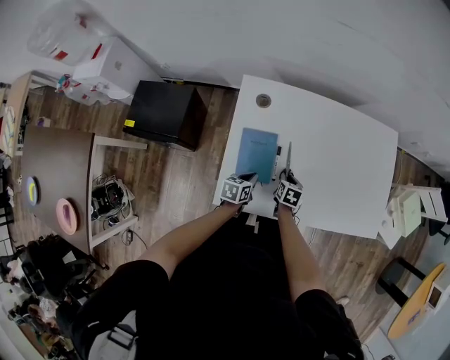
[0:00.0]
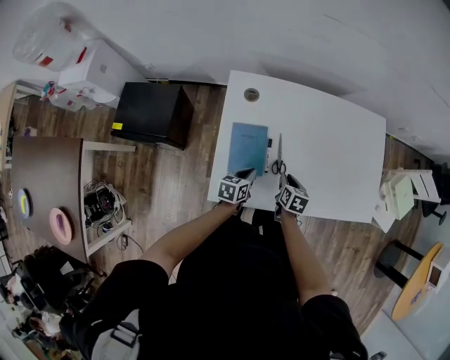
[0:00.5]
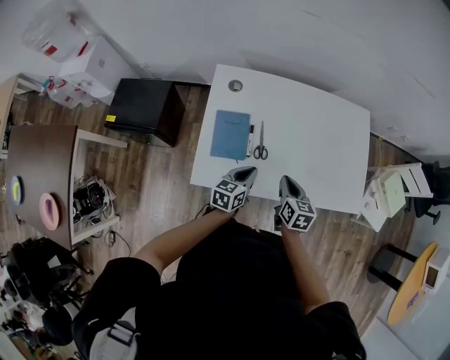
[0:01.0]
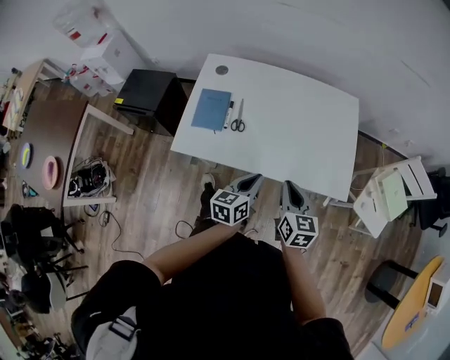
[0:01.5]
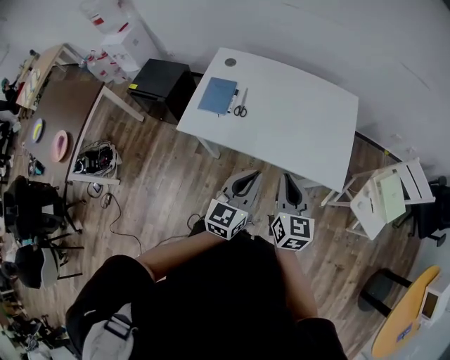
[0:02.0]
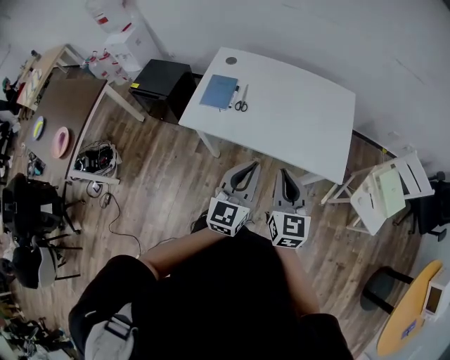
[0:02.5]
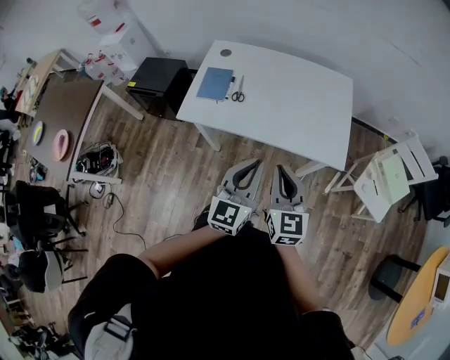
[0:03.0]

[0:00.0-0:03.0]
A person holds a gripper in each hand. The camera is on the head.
0:00.0 to 0:01.5: The left gripper moves to the right, upward and backward, some 40 cm, and turns by roughly 30 degrees, while the right gripper heads upward, to the right and backward, covering approximately 40 cm, and tips its fingers upward by approximately 30 degrees.
0:01.5 to 0:03.0: The grippers both shift backward and upward by some 20 cm. The right gripper turns by approximately 20 degrees. The left gripper turns by about 40 degrees.

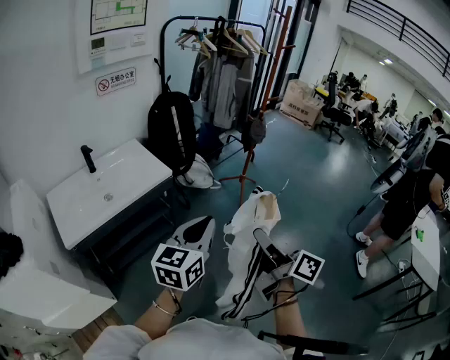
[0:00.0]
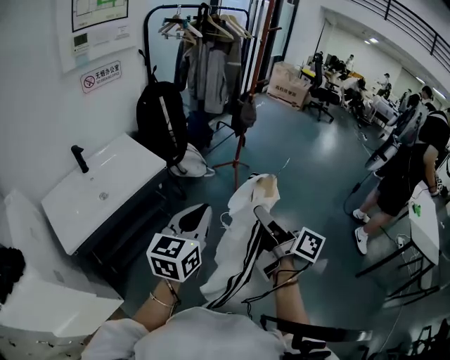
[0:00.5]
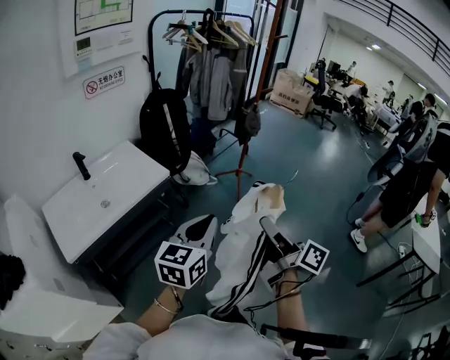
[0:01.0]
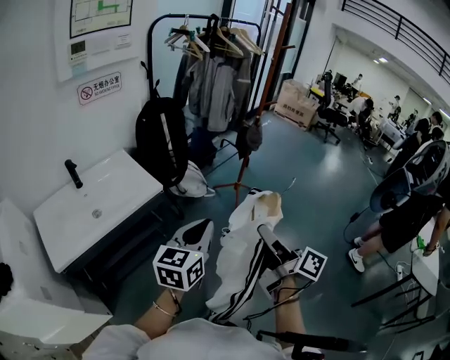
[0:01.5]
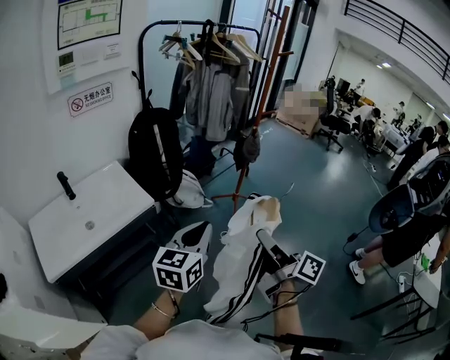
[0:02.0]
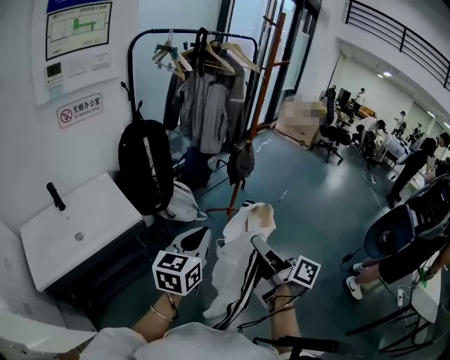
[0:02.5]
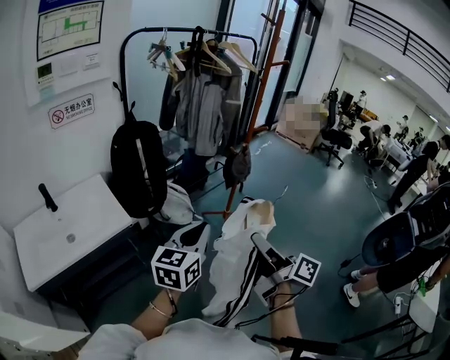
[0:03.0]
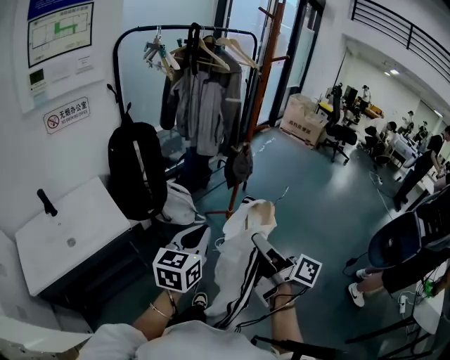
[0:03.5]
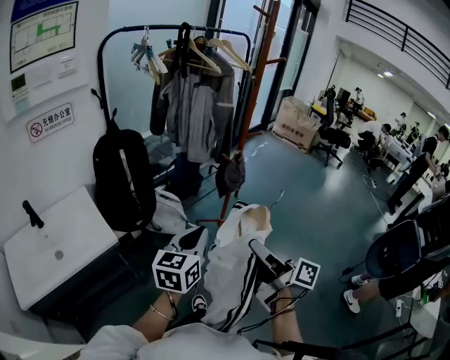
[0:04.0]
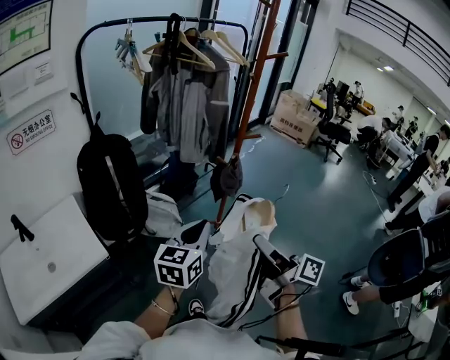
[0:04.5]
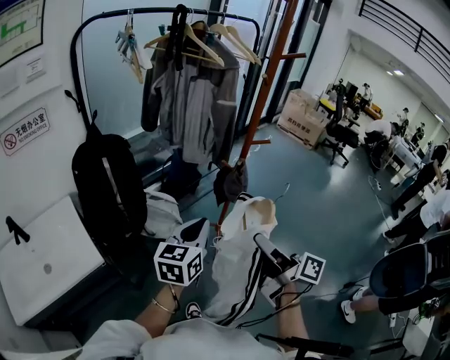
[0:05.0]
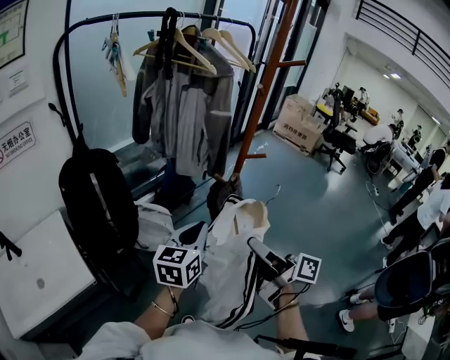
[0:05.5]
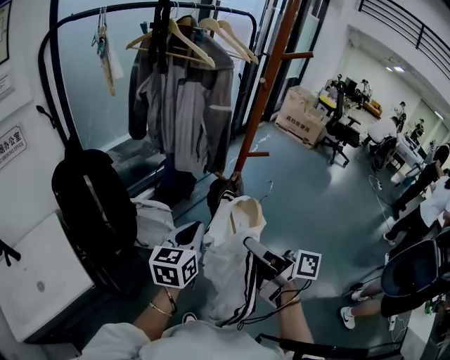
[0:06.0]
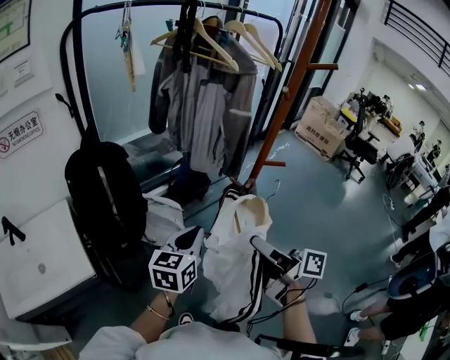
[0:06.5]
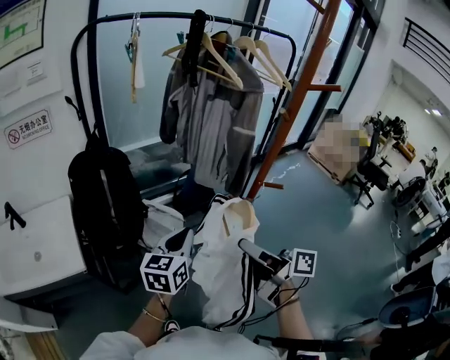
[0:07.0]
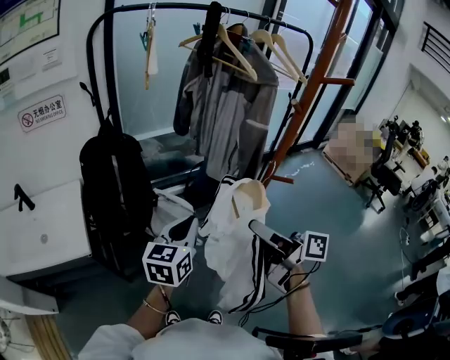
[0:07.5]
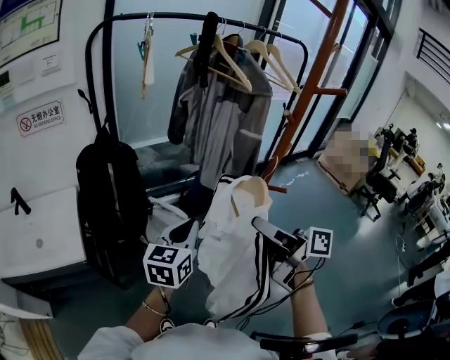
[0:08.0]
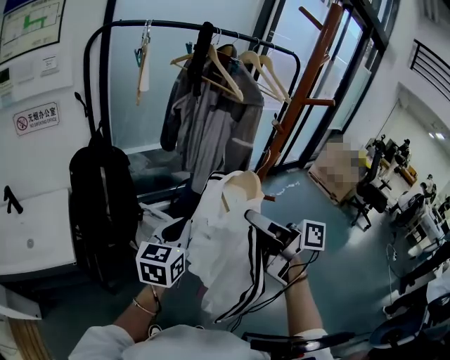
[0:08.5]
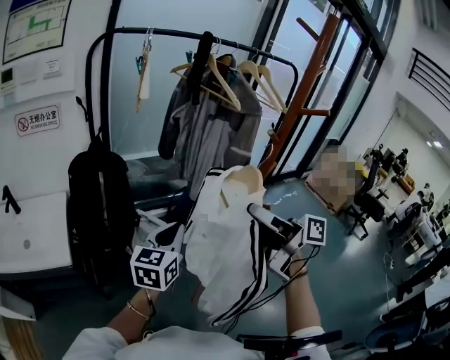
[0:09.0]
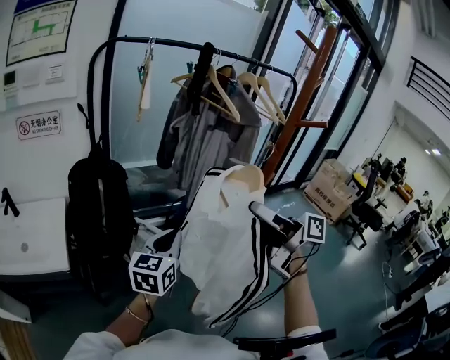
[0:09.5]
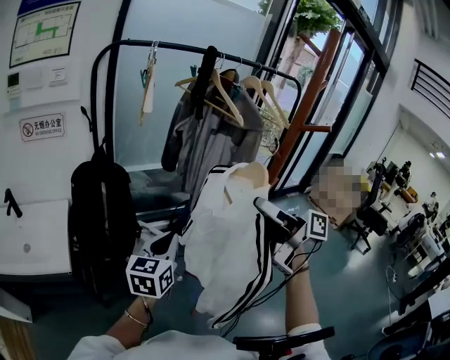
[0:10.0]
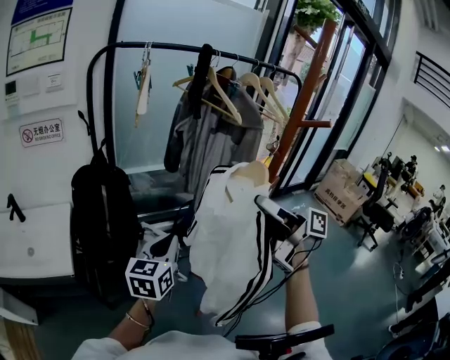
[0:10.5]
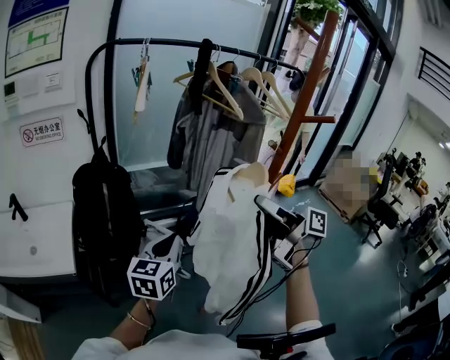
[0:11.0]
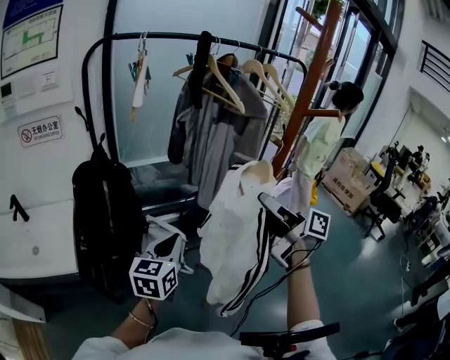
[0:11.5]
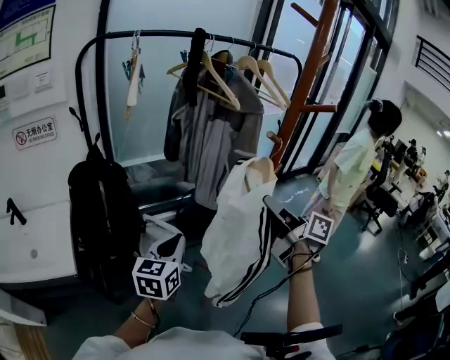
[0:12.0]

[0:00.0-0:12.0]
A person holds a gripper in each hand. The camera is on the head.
0:00.0 to 0:02.0: The grippers both shift forward by roughly 20 cm.
0:02.0 to 0:04.0: The grippers both shift forward and to the right by about 25 cm.
0:04.0 to 0:06.0: Both grippers travel together forward, approximately 25 cm.
0:06.0 to 0:08.0: The right gripper moves forward and upward, some 15 cm, and rotates roughly 30 degrees, while the left gripper shifts by some 5 cm, and changes its angle by some 20 degrees.
0:08.0 to 0:10.0: The right gripper is displaced upward and forward by approximately 10 cm.
0:10.0 to 0:12.0: The right gripper goes roughly 10 cm to the right and downward, and turns by roughly 20 degrees.

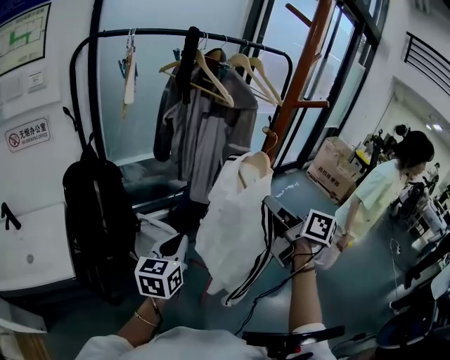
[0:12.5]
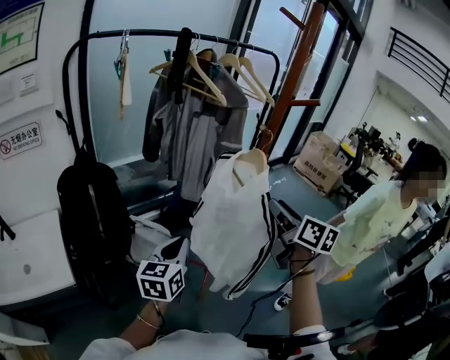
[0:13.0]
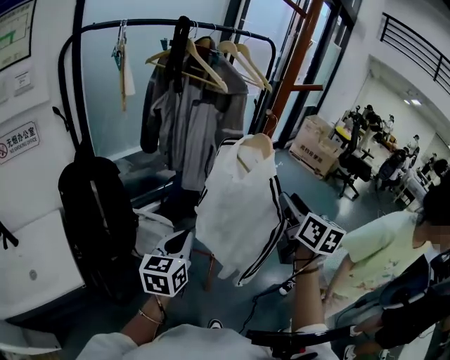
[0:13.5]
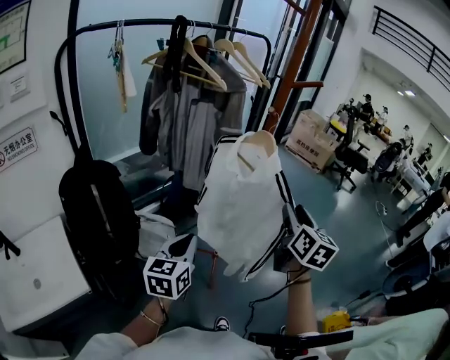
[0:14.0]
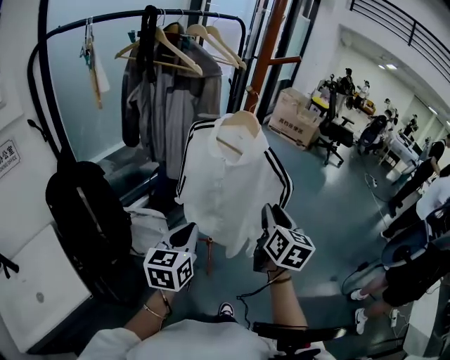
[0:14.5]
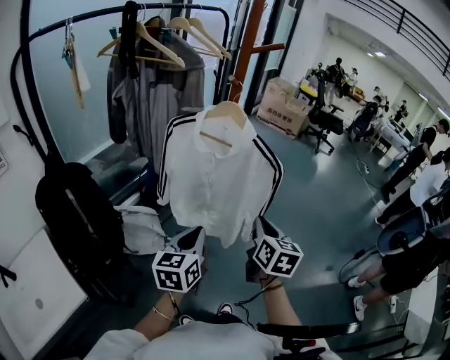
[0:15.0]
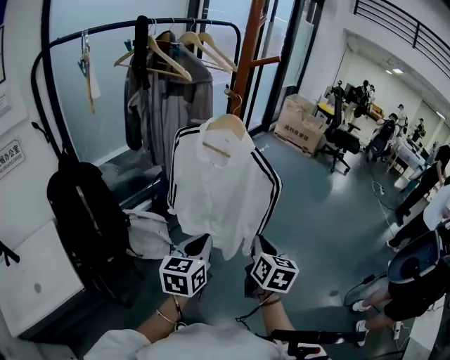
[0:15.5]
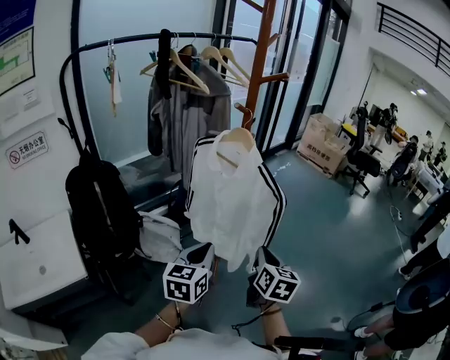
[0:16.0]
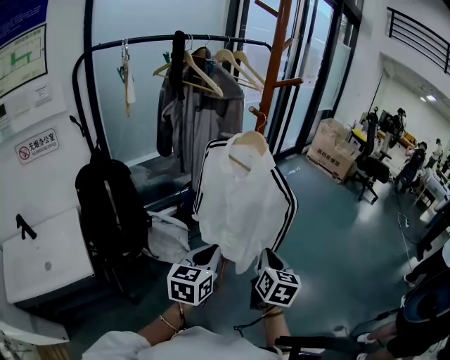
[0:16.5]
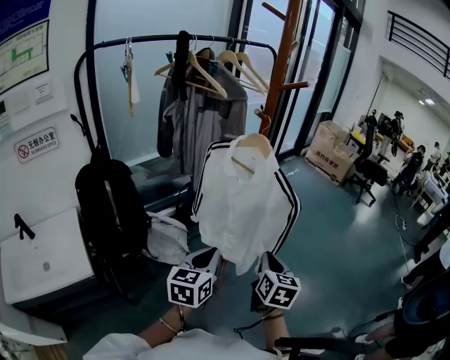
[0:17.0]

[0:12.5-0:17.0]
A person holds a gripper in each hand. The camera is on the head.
0:12.5 to 0:14.5: The right gripper moves about 15 cm, and changes its angle by about 50 degrees. The left gripper rotates some 20 degrees.
0:14.5 to 0:17.0: The left gripper is displaced to the right by approximately 10 cm. The right gripper travels downward by some 10 cm, and closes up.

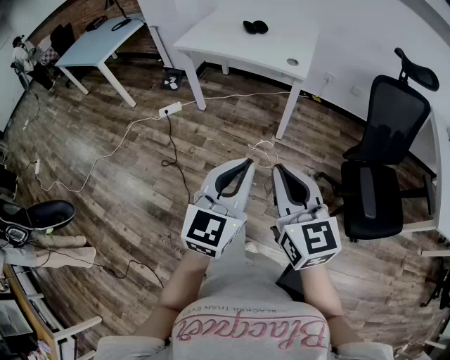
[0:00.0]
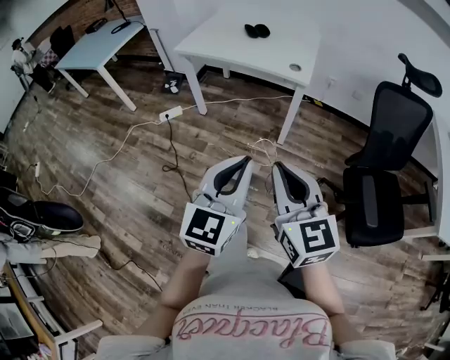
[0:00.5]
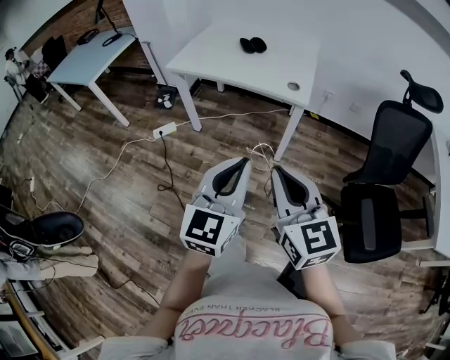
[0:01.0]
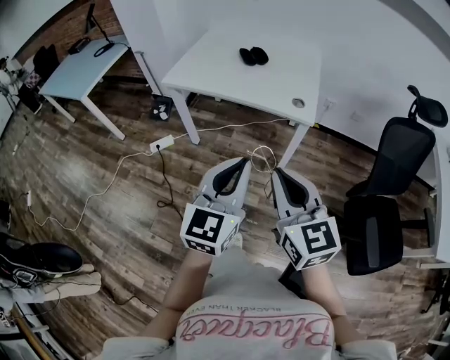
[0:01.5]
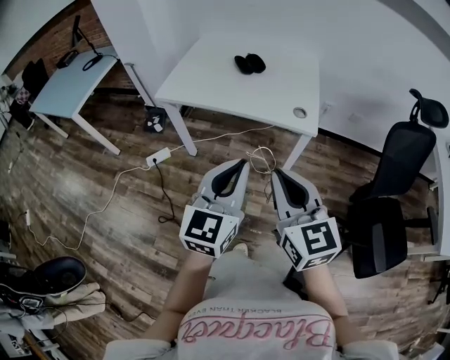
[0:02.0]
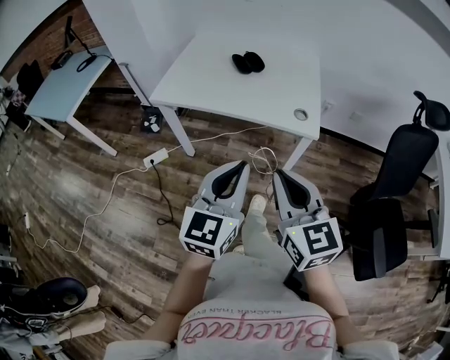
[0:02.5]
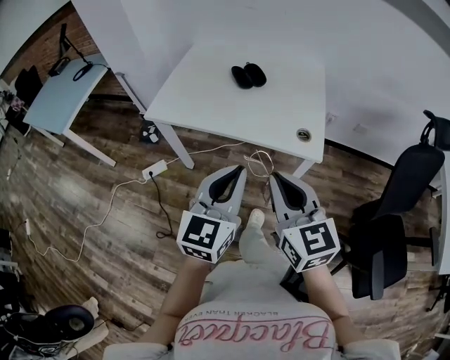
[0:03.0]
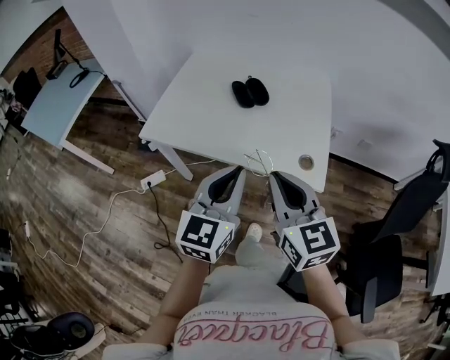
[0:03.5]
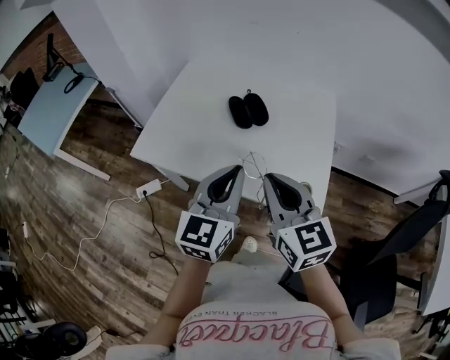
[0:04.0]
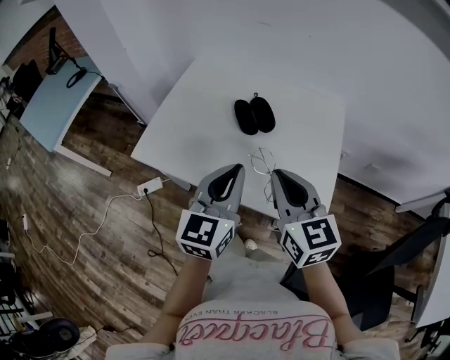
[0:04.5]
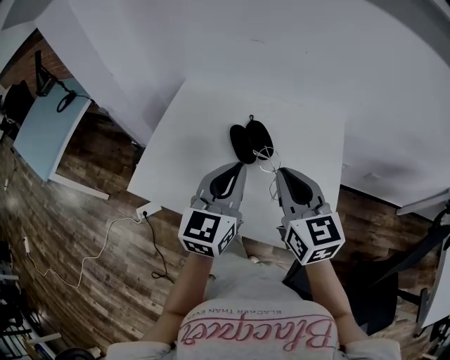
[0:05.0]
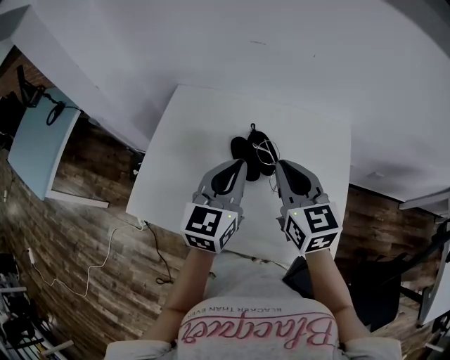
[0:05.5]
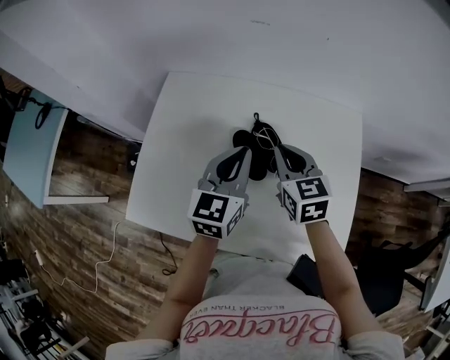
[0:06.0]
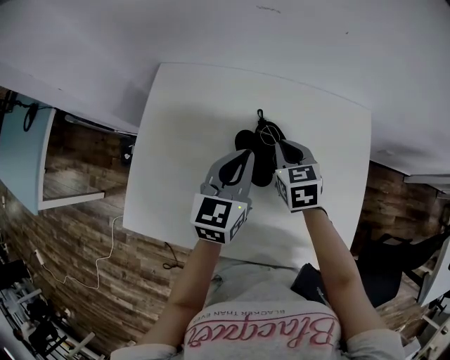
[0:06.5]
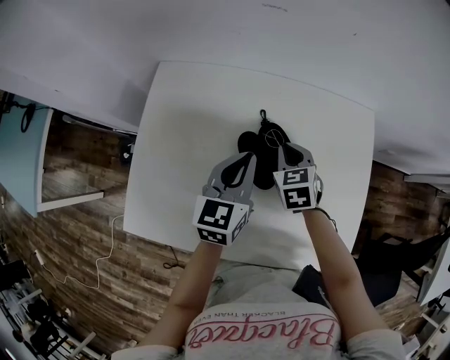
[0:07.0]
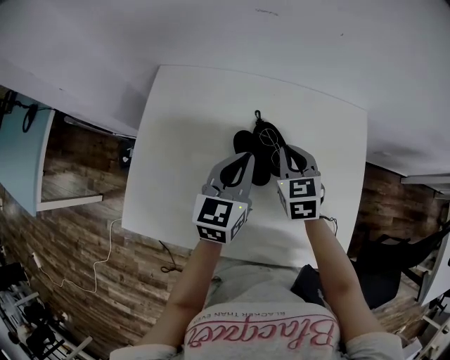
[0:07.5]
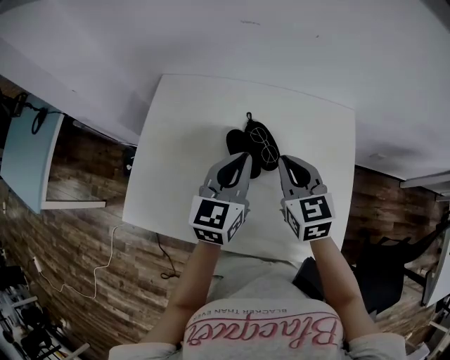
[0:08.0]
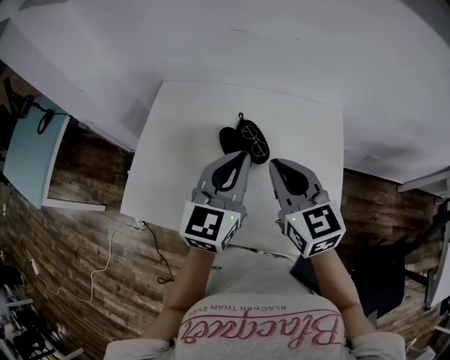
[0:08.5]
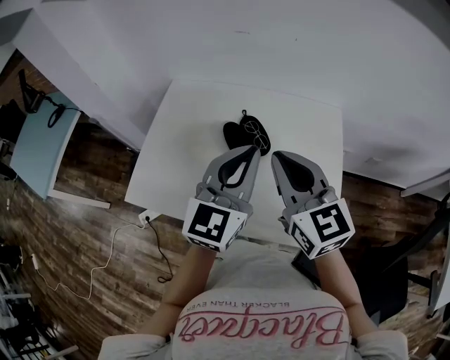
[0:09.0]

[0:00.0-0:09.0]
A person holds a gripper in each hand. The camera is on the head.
0:00.0 to 0:02.0: Both grippers move forward, roughly 30 cm.
0:02.0 to 0:04.5: Both grippers move forward, roughly 40 cm.
0:04.5 to 0:07.0: The two grippers go some 35 cm forward and downward. The right gripper tips its fingers downward by roughly 30 degrees.
0:07.0 to 0:09.0: The left gripper heads upward, backward and to the right, covering roughly 25 cm, and turns by some 30 degrees. Meanwhile the right gripper shifts about 35 cm upward and backward, and tips its fingers upward by approximately 40 degrees.
